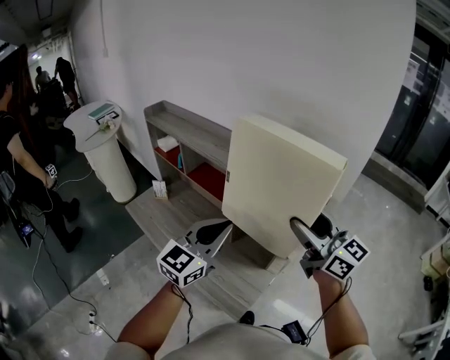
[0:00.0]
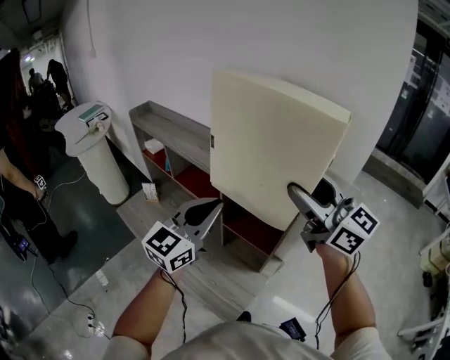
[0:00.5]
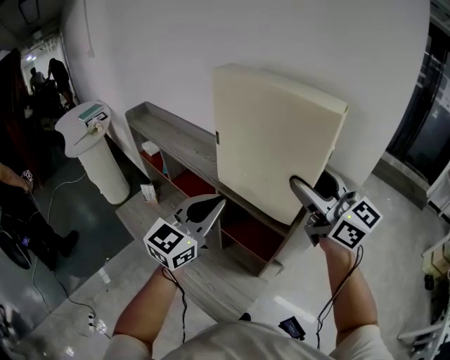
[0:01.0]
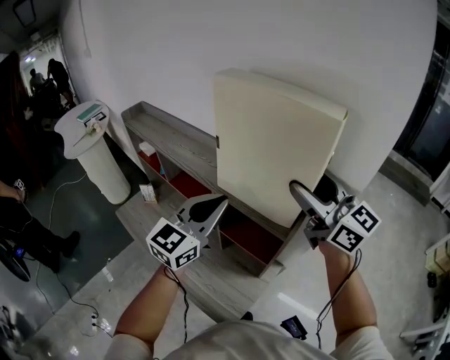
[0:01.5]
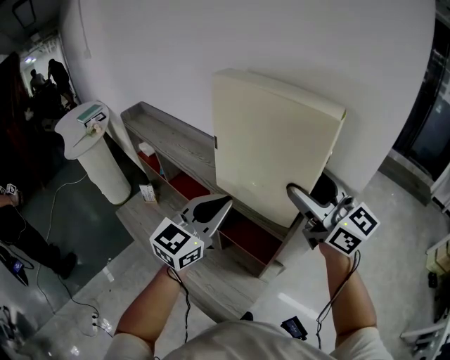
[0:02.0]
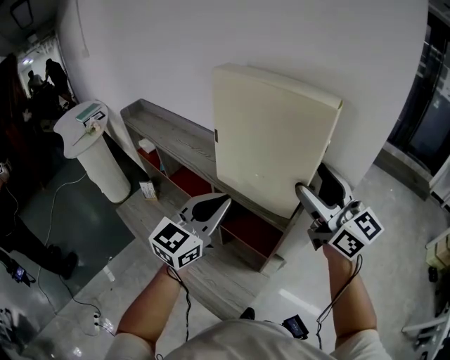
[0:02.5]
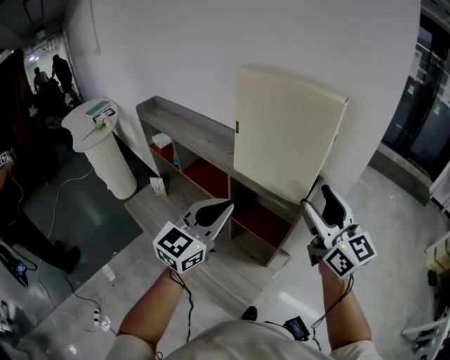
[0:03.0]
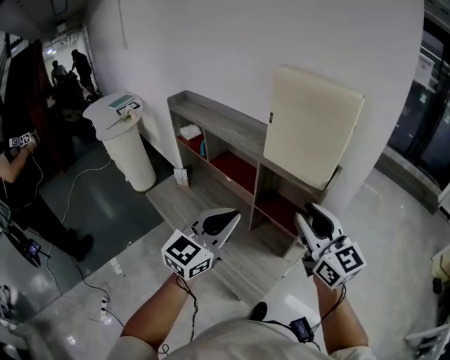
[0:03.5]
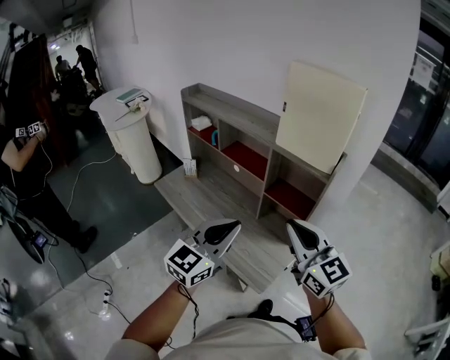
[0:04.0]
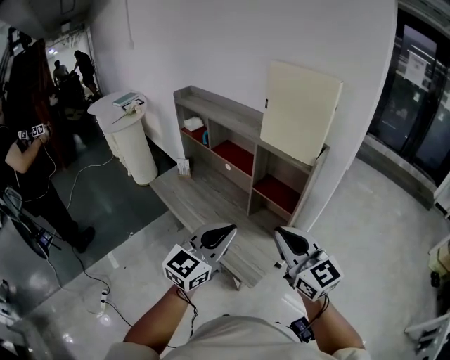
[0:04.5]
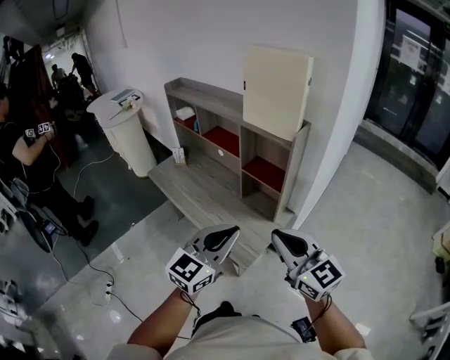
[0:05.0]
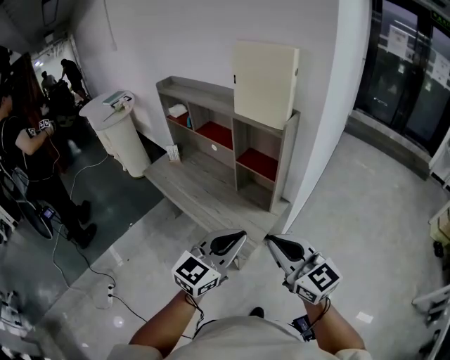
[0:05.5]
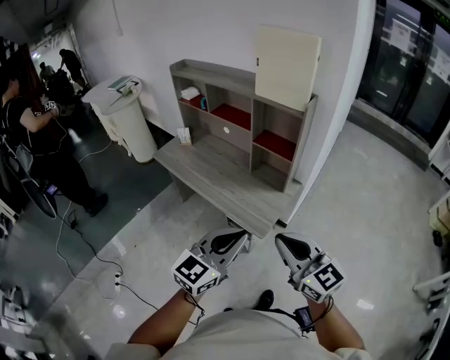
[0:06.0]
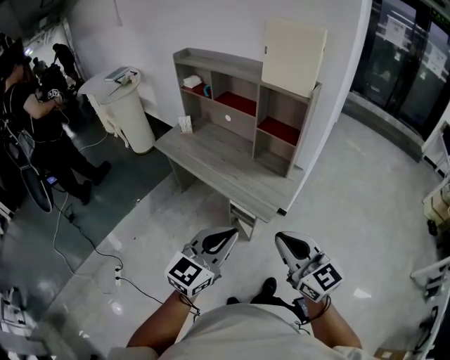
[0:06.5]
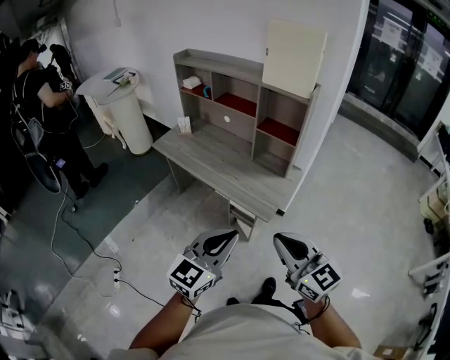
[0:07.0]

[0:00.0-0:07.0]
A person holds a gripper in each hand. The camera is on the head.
0:00.0 to 0:02.0: The right gripper travels forward by about 15 cm; the left gripper shifts approximately 15 cm forward and to the right.
0:02.0 to 0:03.5: Both grippers travel together backward and to the left, roughly 20 cm. The right gripper closes its fingers.
0:03.5 to 0:05.0: Both grippers travel together backward, some 25 cm. The right gripper closes up.
0:05.0 to 0:07.0: The two grippers go some 25 cm backward and to the left.

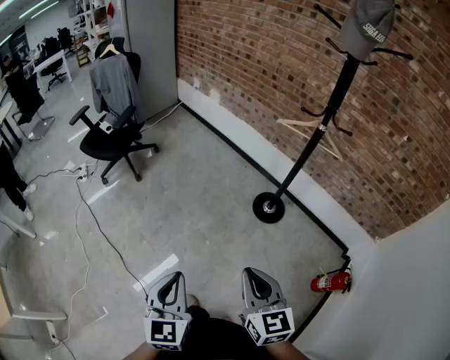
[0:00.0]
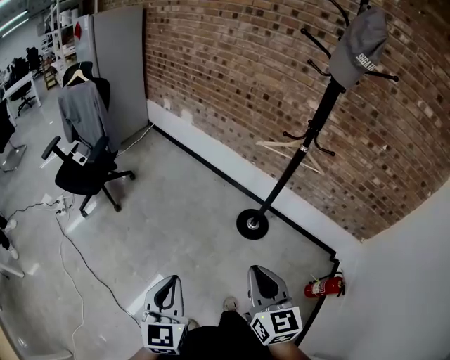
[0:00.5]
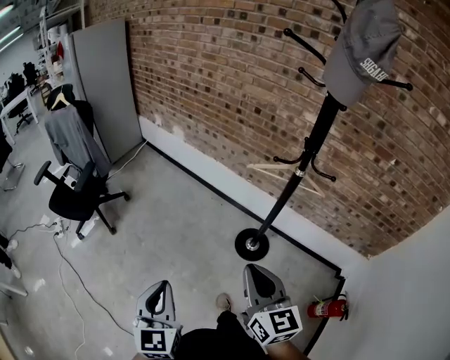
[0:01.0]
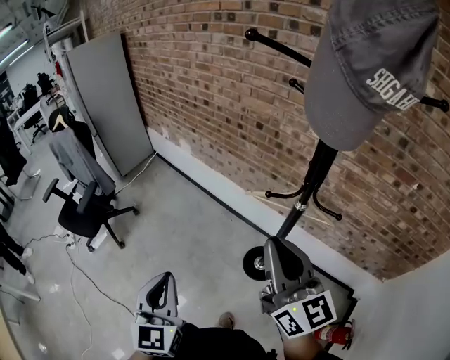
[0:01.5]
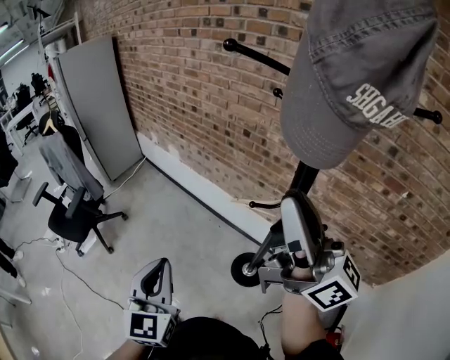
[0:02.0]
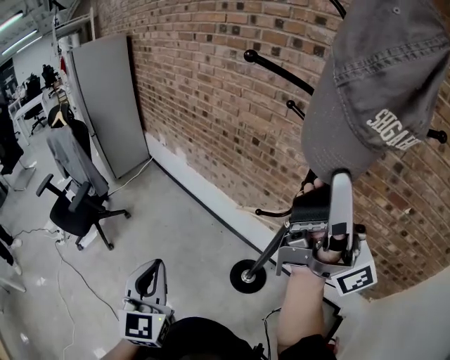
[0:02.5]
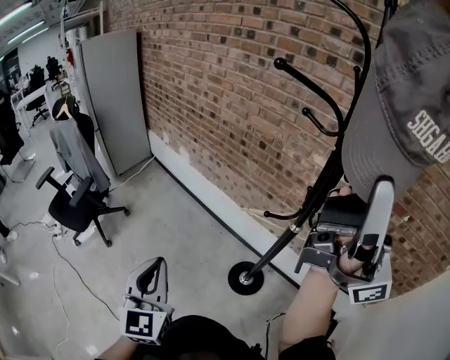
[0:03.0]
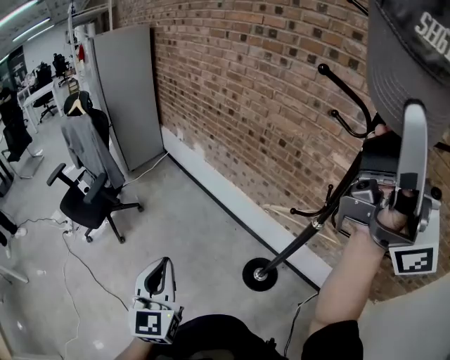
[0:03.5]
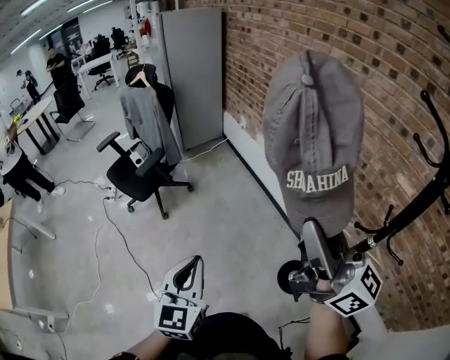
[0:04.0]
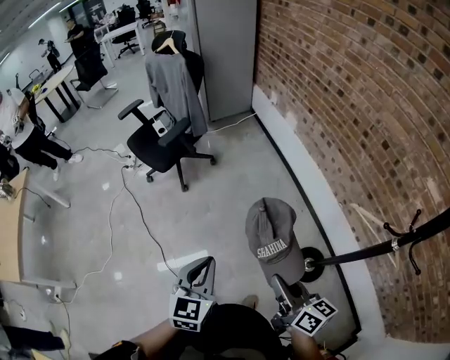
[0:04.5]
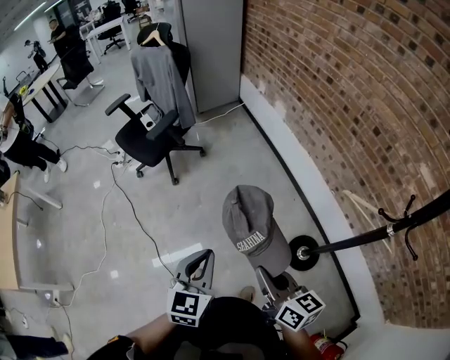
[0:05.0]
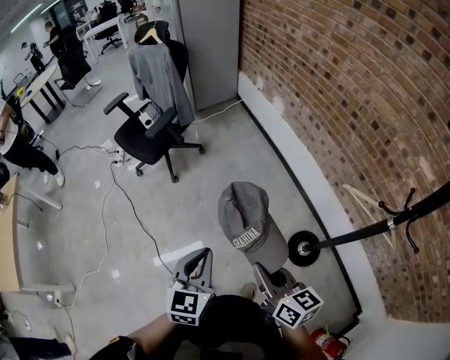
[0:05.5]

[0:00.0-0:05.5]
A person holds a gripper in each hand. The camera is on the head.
0:00.0 to 0:02.0: Both grippers are carried forward and to the right, some 50 cm. The right gripper moves upward, some 30 cm, and tilts its fingers roughly 50 degrees upward.
0:02.0 to 0:03.5: The left gripper travels to the left by approximately 15 cm. Meanwhile the right gripper travels upward and to the left by about 25 cm, and turns by about 30 degrees.
0:03.5 to 0:05.5: The right gripper heads downward and to the left, covering approximately 60 cm, and angles its fingers downward, by approximately 60 degrees; the left gripper heads downward and to the left, covering some 20 cm, and changes its angle by some 20 degrees.

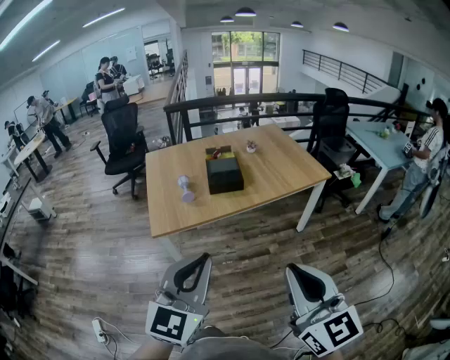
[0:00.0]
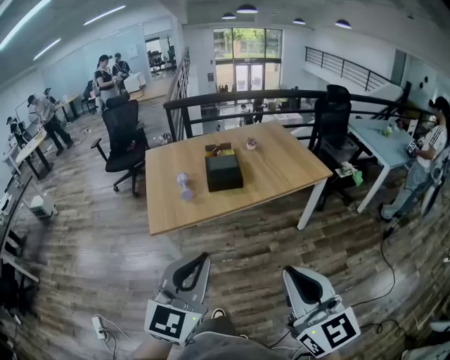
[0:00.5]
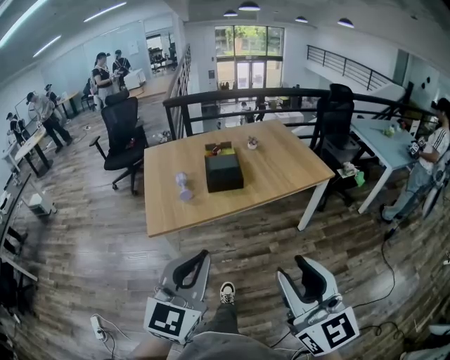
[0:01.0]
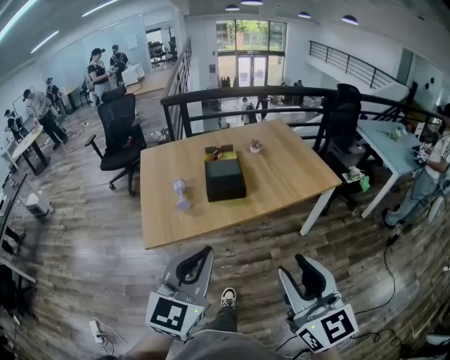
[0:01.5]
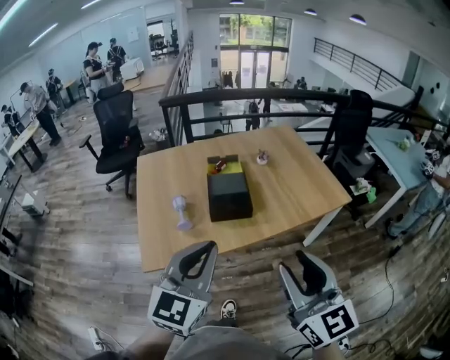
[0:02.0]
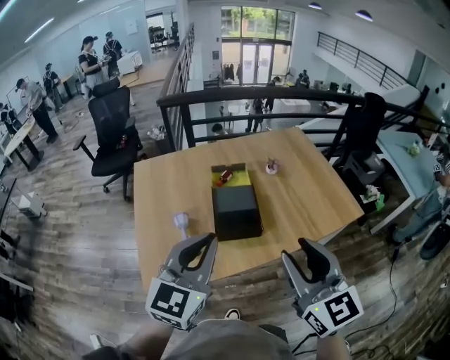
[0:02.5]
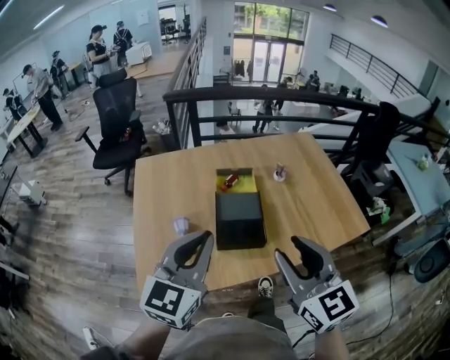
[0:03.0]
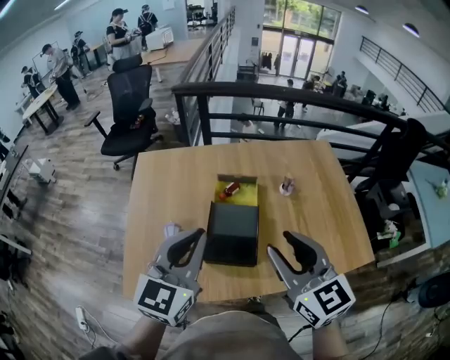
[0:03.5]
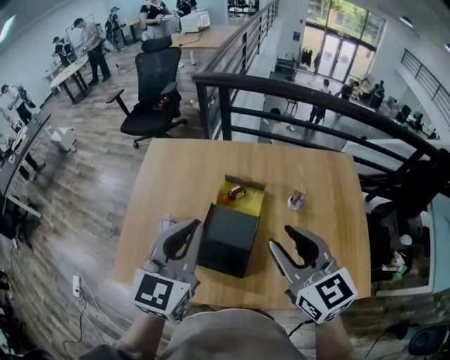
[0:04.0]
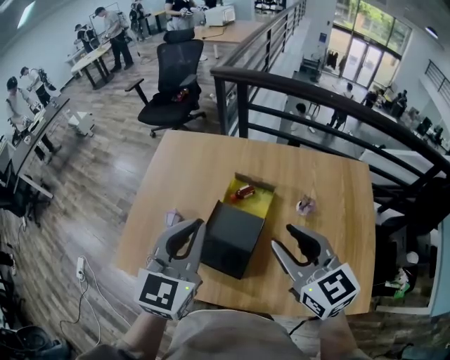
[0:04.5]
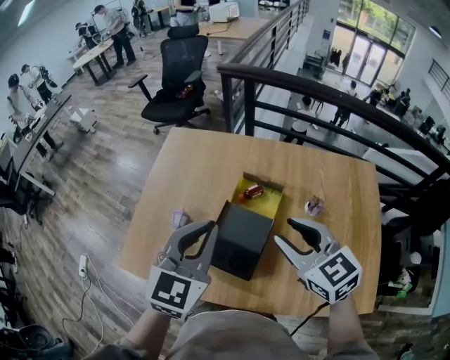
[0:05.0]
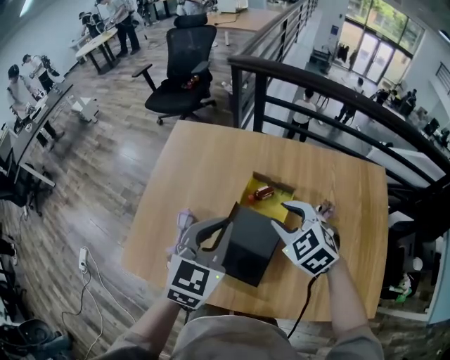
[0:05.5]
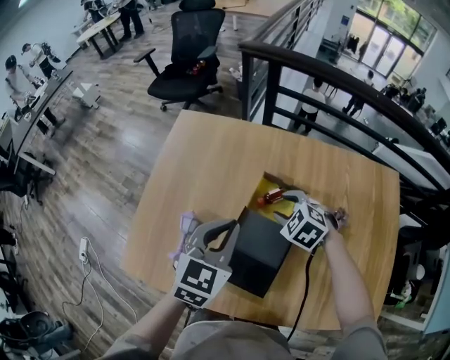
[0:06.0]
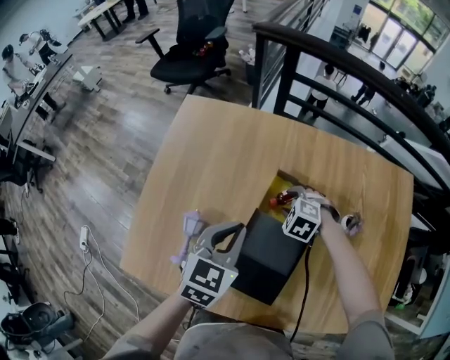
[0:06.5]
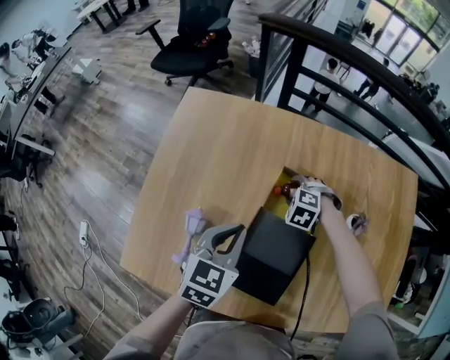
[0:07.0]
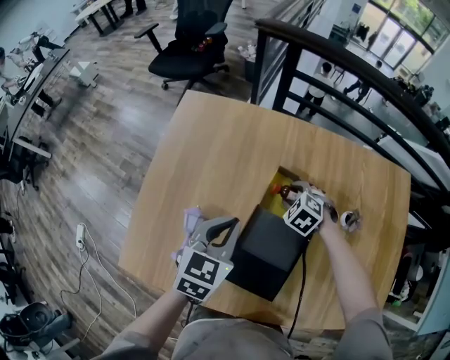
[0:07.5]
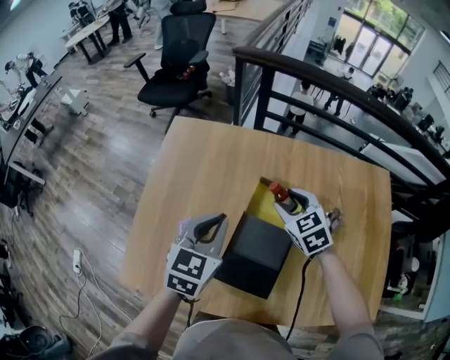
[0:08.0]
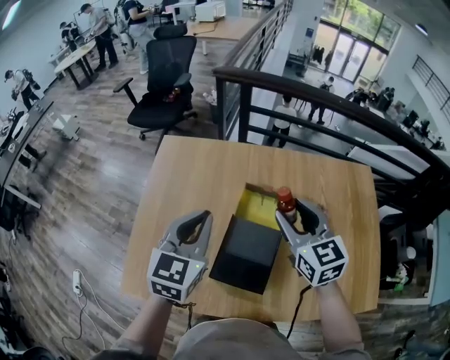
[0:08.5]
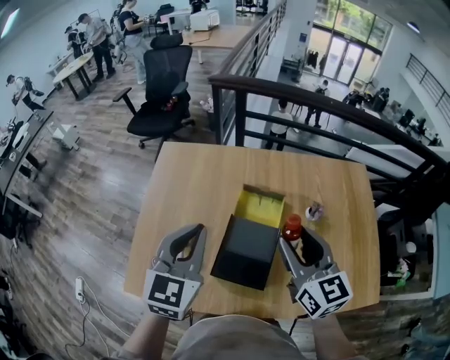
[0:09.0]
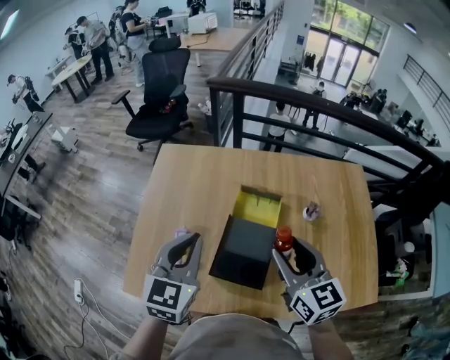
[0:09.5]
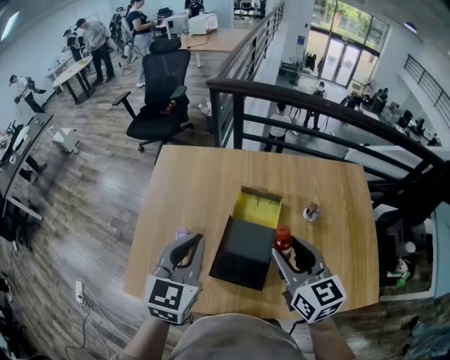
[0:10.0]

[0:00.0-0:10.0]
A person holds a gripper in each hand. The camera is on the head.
0:00.0 to 0:02.0: The grippers both shift forward by some 30 cm. The right gripper opens up.
0:02.0 to 0:04.0: The left gripper ends up about 40 cm from where it was, and changes its angle by some 30 degrees. The right gripper changes place by about 50 cm, and turns by roughly 30 degrees.
0:04.0 to 0:06.0: The right gripper goes some 35 cm downward and forward, and tilts its fingers about 50 degrees downward; the left gripper shifts approximately 20 cm downward and forward.
0:06.0 to 0:08.0: The right gripper reaches some 15 cm downward, then returns, and changes its angle by roughly 30 degrees. Meanwhile the left gripper moves approximately 10 cm downward and comes back.
0:08.0 to 0:10.0: The right gripper travels backward and upward by about 25 cm, and rotates some 40 degrees, while the left gripper is displaced backward and upward by approximately 15 cm.

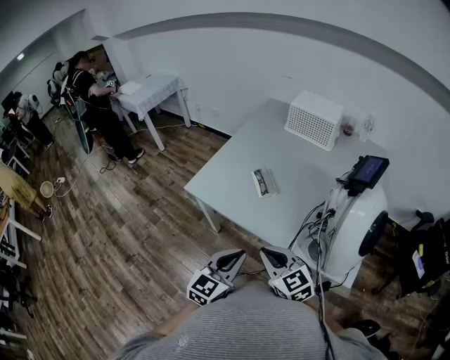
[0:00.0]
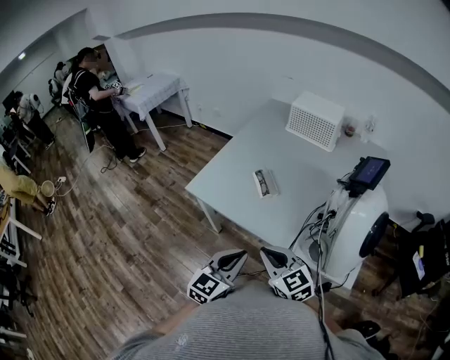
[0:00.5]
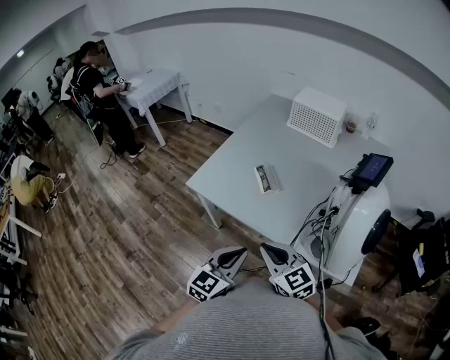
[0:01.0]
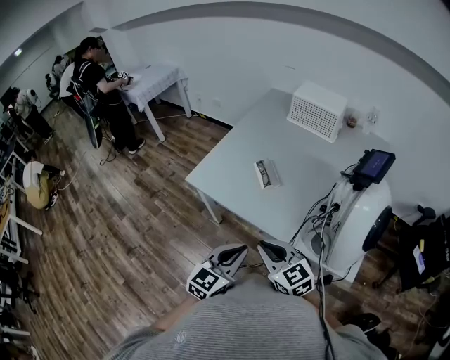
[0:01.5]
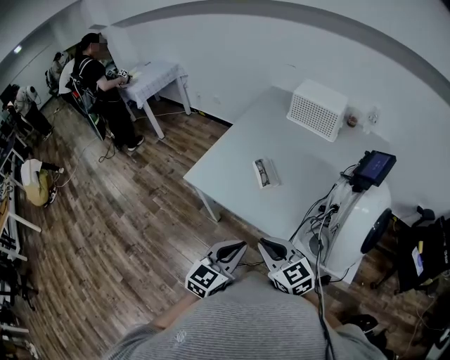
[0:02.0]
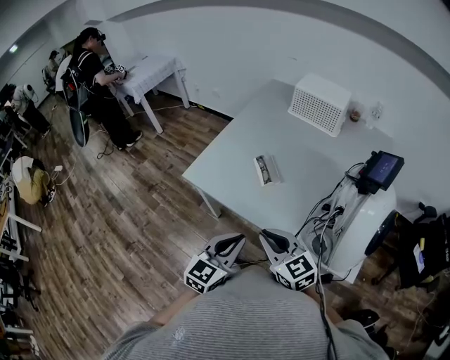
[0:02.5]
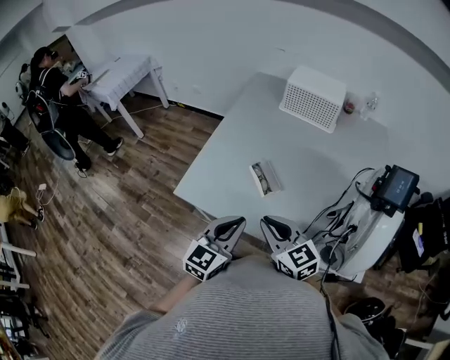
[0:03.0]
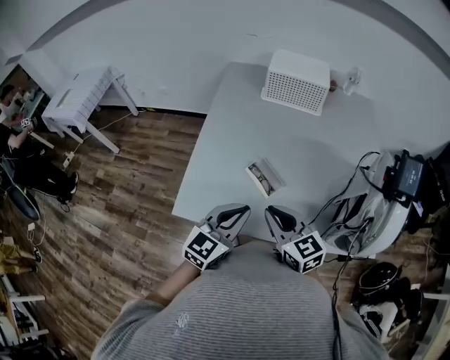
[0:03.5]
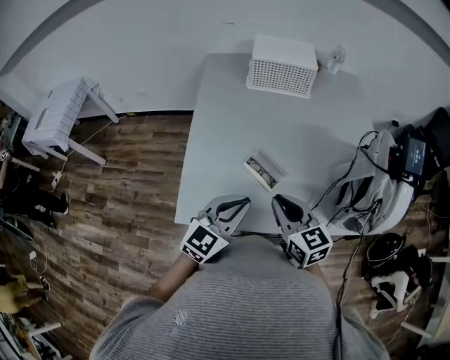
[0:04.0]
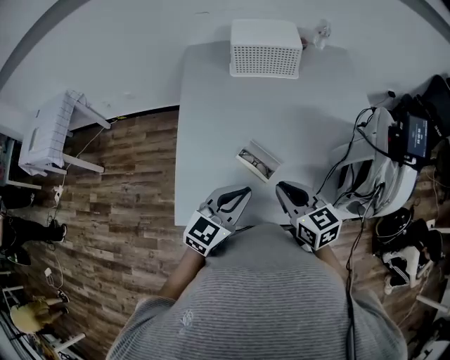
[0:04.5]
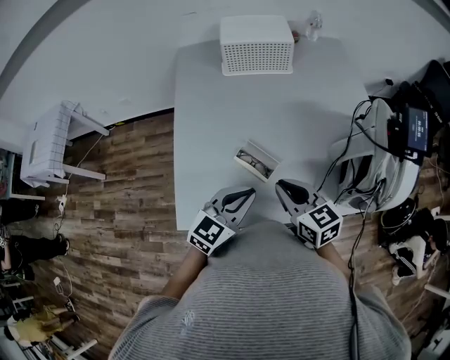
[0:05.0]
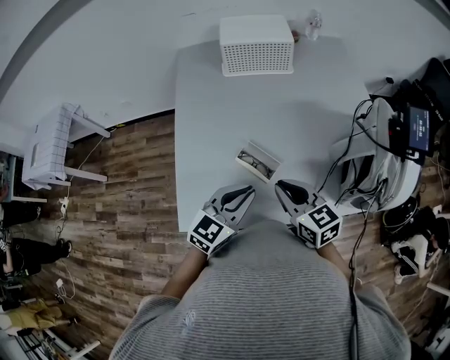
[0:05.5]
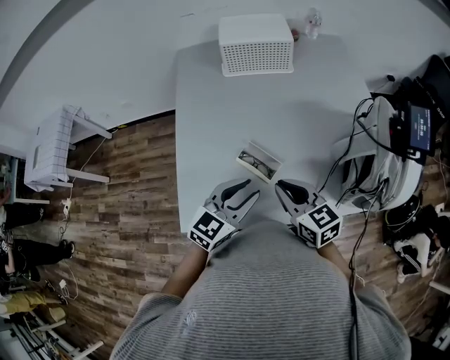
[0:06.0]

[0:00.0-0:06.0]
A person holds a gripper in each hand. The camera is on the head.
0:00.0 to 0:02.0: The grippers make only small movements.
0:02.0 to 0:04.0: The left gripper moves roughly 30 cm, and rotates roughly 40 degrees. The right gripper moves about 25 cm, and rotates some 40 degrees.
0:04.0 to 0:06.0: The right gripper moves some 5 cm, while the left gripper goes approximately 5 cm forward, and opens.
